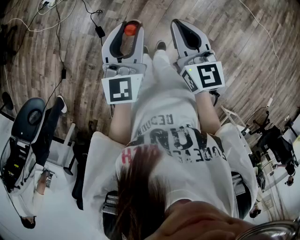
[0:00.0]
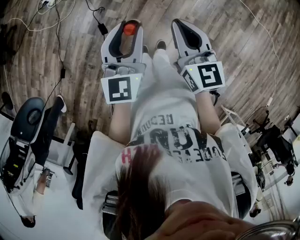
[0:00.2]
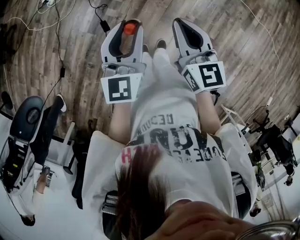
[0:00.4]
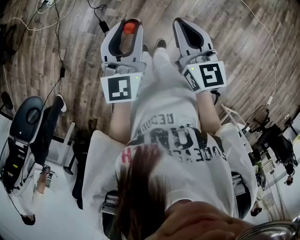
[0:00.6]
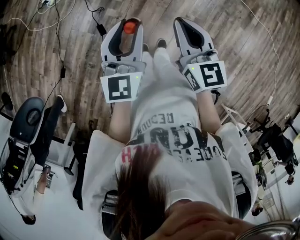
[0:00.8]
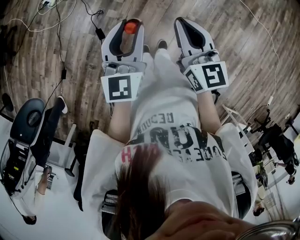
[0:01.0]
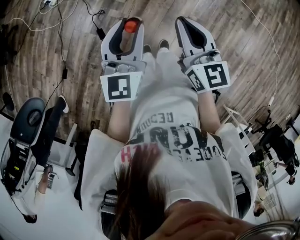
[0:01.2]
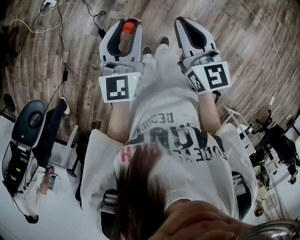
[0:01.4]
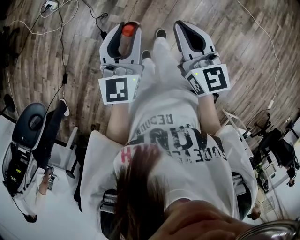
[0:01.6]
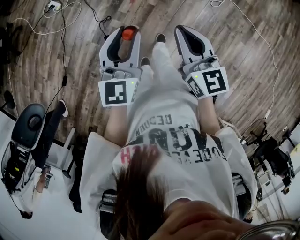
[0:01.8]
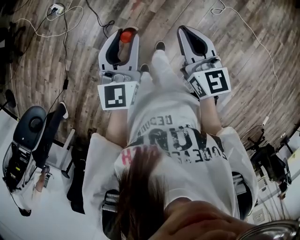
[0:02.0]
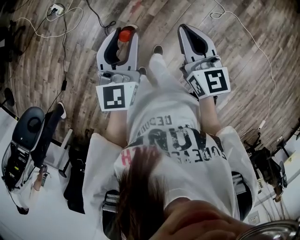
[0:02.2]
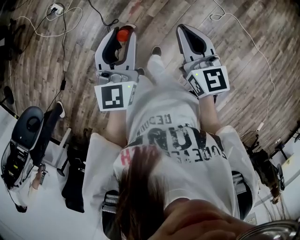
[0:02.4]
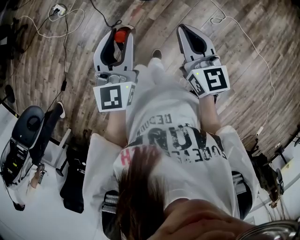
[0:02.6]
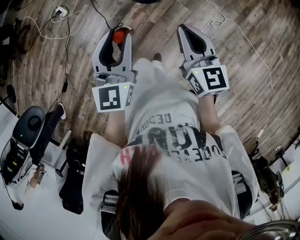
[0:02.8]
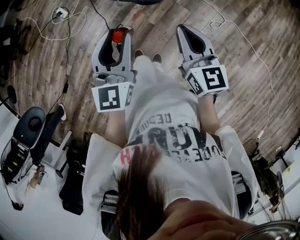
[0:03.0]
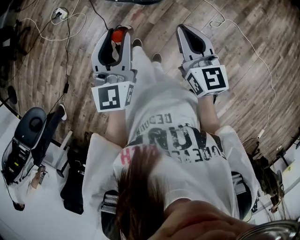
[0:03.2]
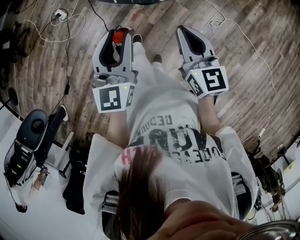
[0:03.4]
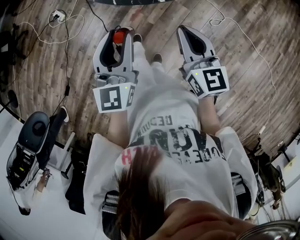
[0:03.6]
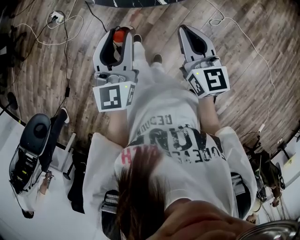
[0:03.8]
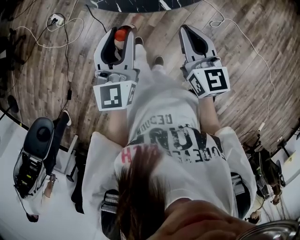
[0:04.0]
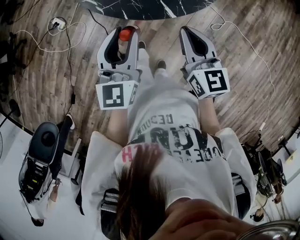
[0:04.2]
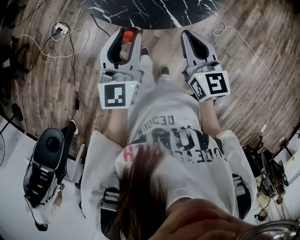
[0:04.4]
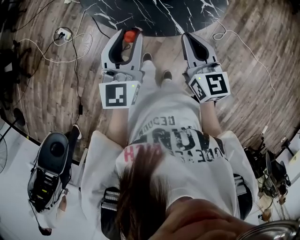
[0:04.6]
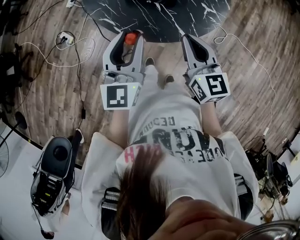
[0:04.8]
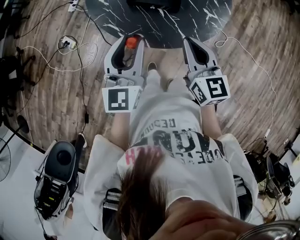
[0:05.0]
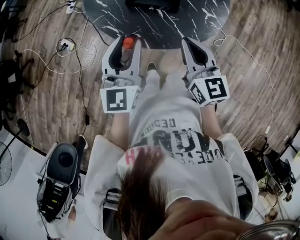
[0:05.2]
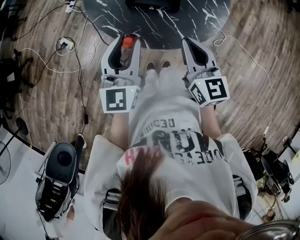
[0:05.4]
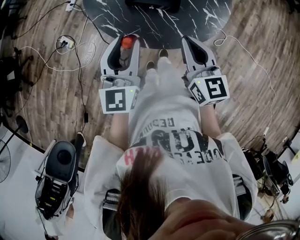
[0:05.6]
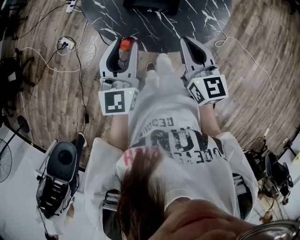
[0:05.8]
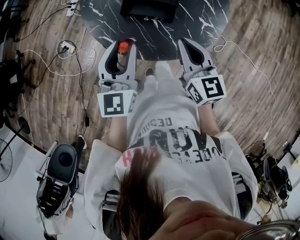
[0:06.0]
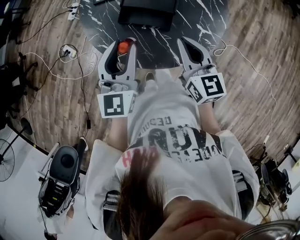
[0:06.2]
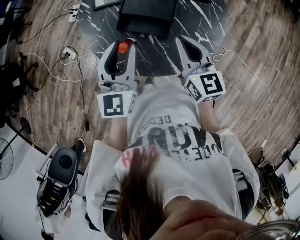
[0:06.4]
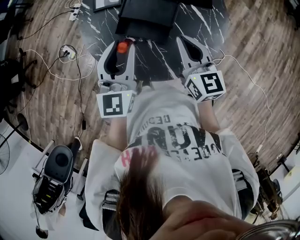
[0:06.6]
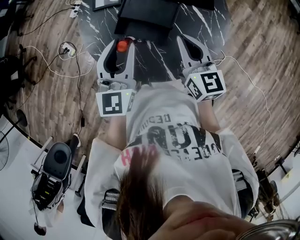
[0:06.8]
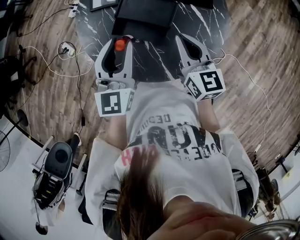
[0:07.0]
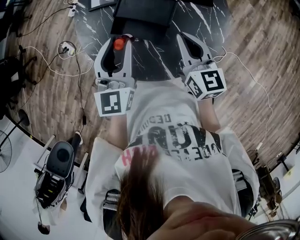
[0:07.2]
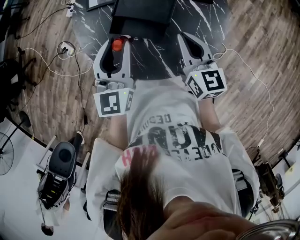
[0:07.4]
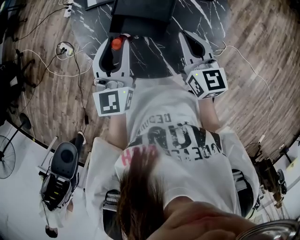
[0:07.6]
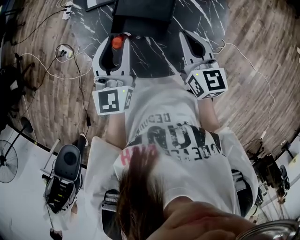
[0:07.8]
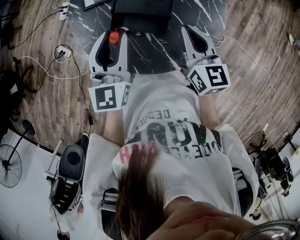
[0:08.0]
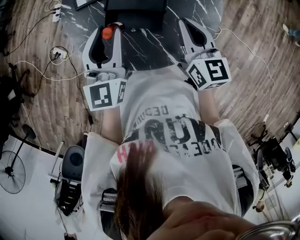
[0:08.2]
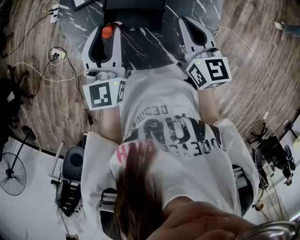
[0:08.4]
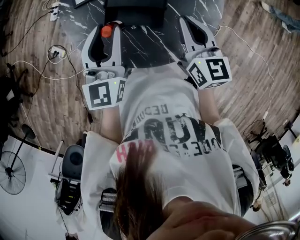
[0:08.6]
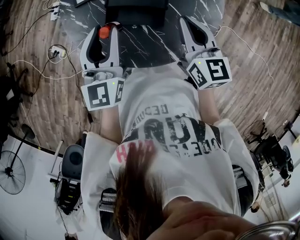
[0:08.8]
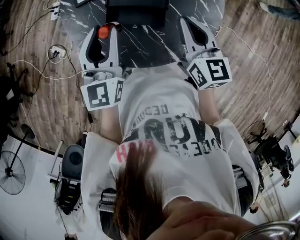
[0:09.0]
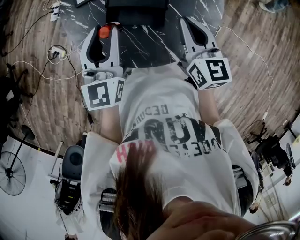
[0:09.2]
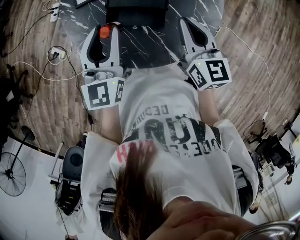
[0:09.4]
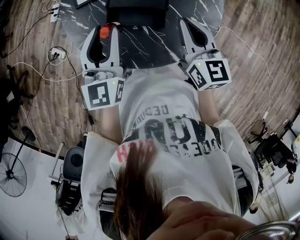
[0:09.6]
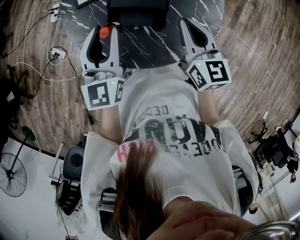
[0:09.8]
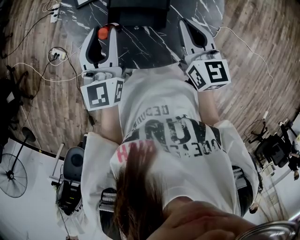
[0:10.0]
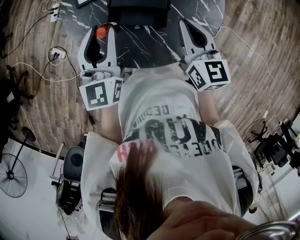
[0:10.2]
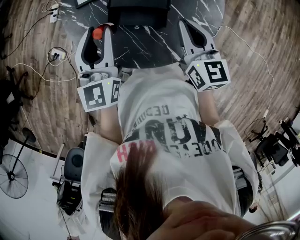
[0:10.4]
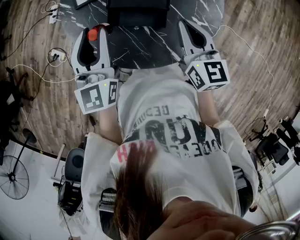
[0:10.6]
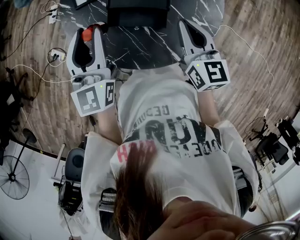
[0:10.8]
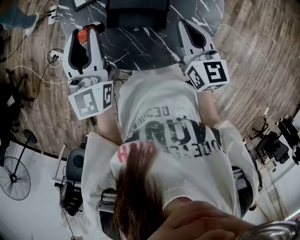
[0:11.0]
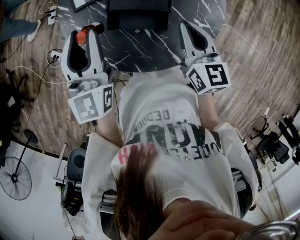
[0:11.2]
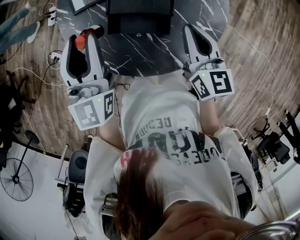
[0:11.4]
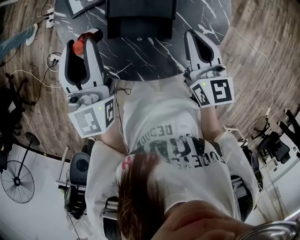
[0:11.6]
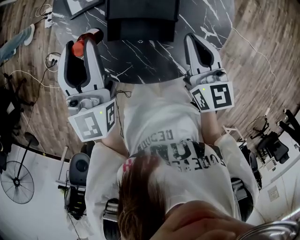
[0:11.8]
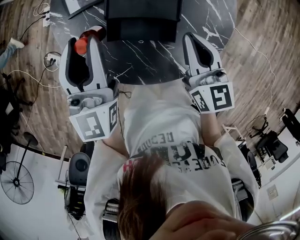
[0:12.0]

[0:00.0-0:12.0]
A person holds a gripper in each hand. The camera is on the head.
0:00.0 to 0:01.6: The grippers stay close to where they were, moving slightly.
0:01.6 to 0:03.0: The grippers both shift forward and to the right by roughly 20 cm.
0:03.0 to 0:04.4: The grippers both shift forward by roughly 15 cm.
0:04.4 to 0:06.0: The grippers both shift forward by roughly 10 cm.
0:06.0 to 0:07.6: The grippers both shift forward and to the right by approximately 15 cm.
0:07.6 to 0:09.0: The grippers move only a little.
0:09.0 to 0:10.4: The grippers move only a little.
0:10.4 to 0:12.0: The left gripper moves forward, roughly 5 cm, while the right gripper ends up approximately 5 cm from where it was.

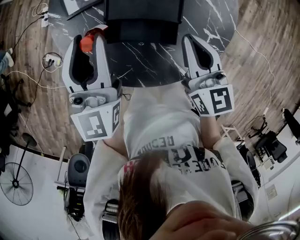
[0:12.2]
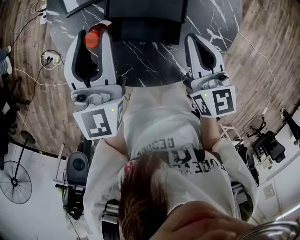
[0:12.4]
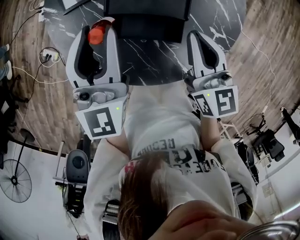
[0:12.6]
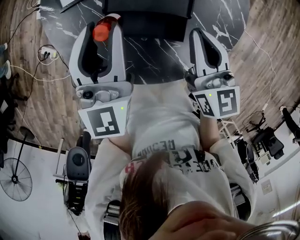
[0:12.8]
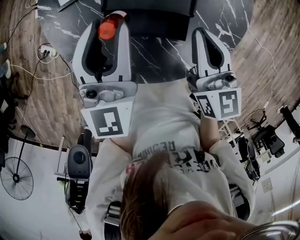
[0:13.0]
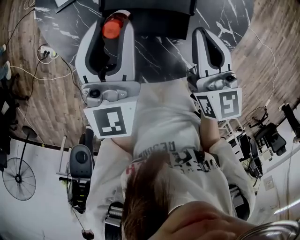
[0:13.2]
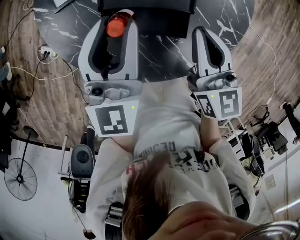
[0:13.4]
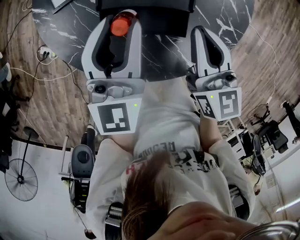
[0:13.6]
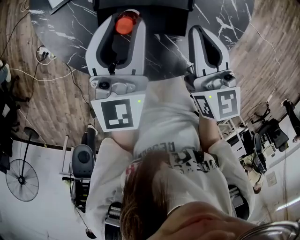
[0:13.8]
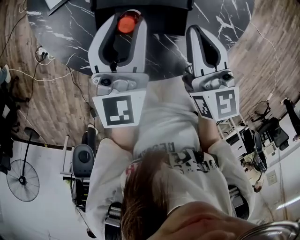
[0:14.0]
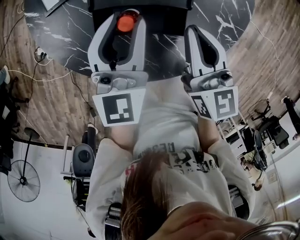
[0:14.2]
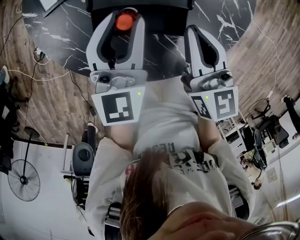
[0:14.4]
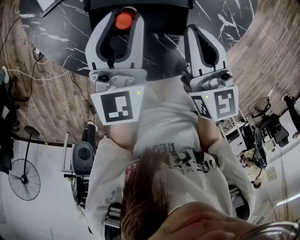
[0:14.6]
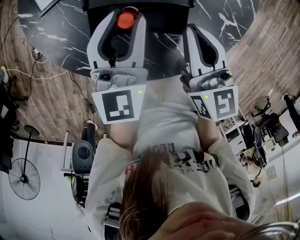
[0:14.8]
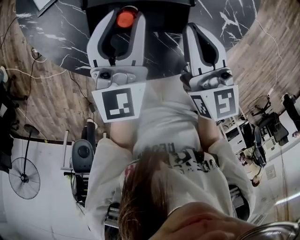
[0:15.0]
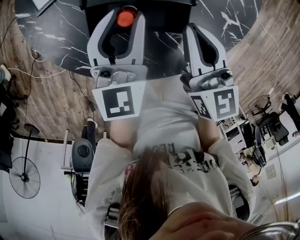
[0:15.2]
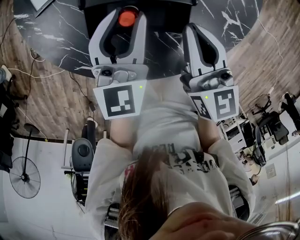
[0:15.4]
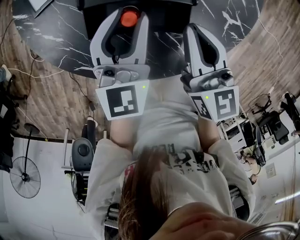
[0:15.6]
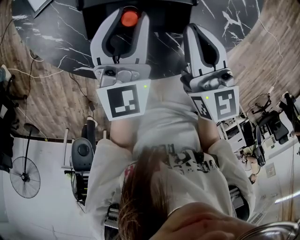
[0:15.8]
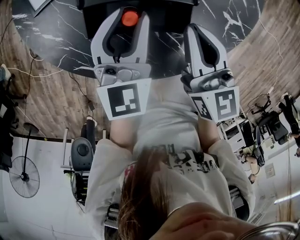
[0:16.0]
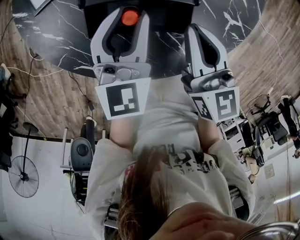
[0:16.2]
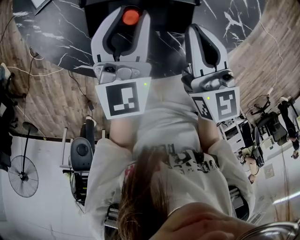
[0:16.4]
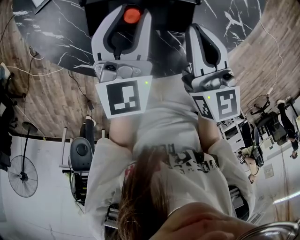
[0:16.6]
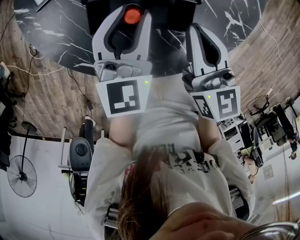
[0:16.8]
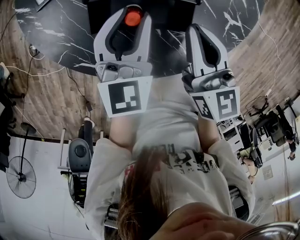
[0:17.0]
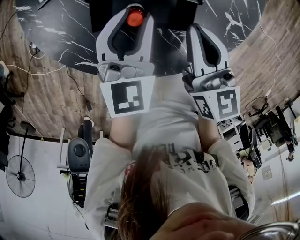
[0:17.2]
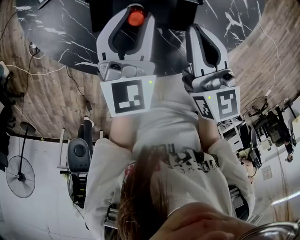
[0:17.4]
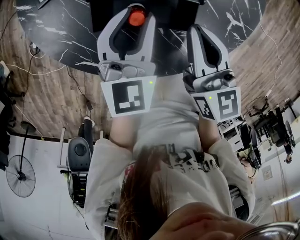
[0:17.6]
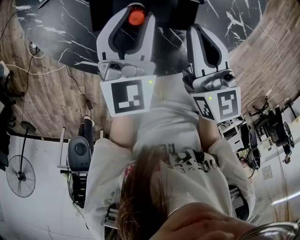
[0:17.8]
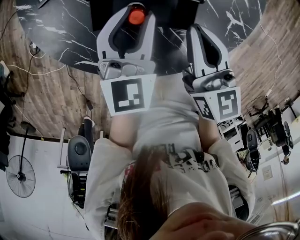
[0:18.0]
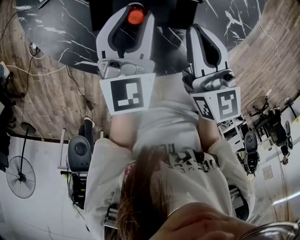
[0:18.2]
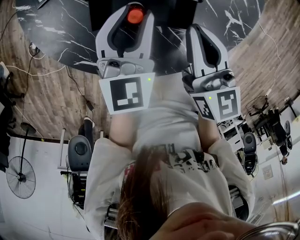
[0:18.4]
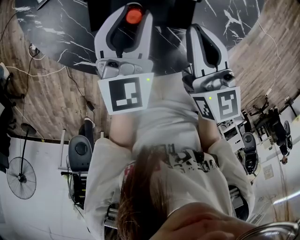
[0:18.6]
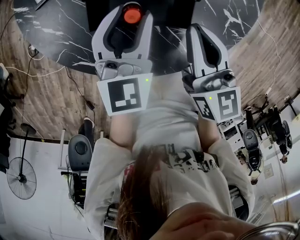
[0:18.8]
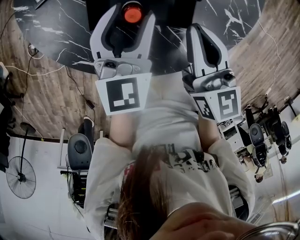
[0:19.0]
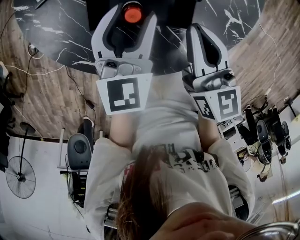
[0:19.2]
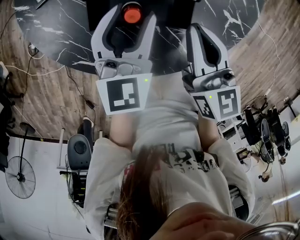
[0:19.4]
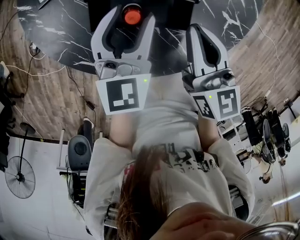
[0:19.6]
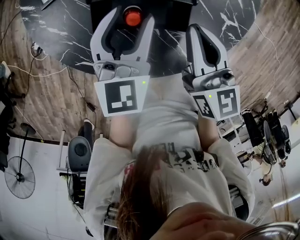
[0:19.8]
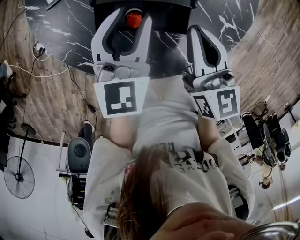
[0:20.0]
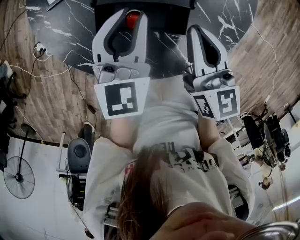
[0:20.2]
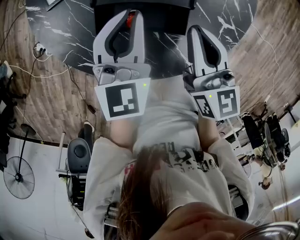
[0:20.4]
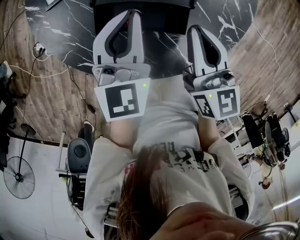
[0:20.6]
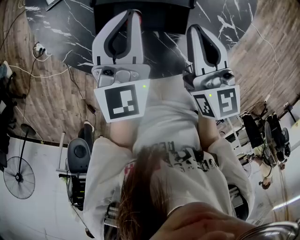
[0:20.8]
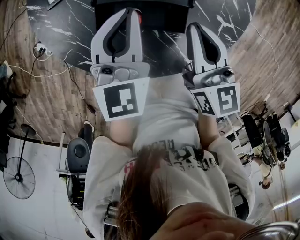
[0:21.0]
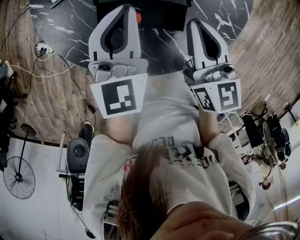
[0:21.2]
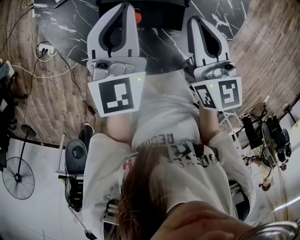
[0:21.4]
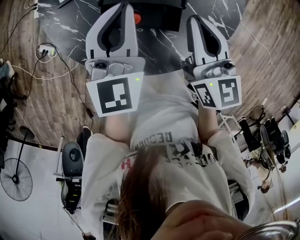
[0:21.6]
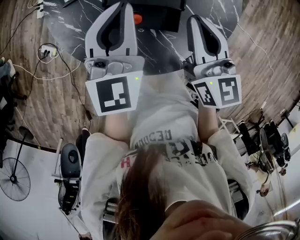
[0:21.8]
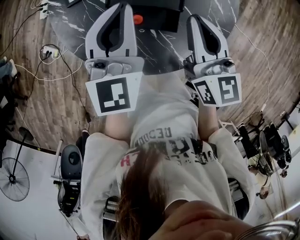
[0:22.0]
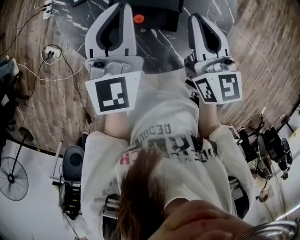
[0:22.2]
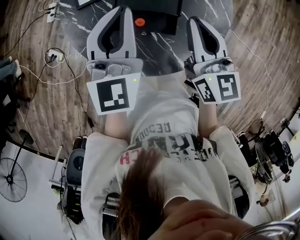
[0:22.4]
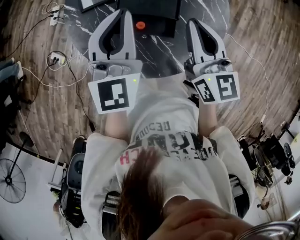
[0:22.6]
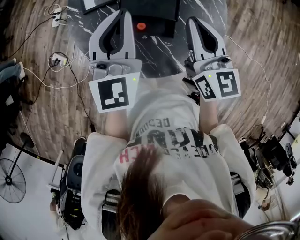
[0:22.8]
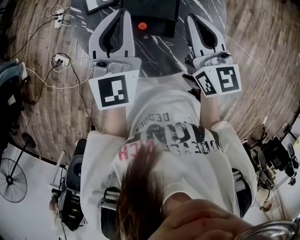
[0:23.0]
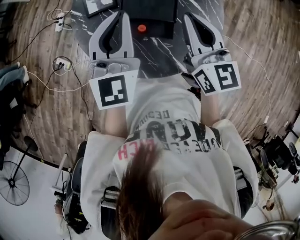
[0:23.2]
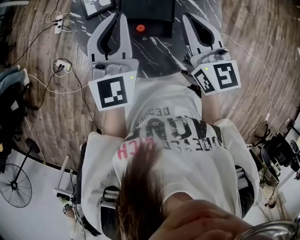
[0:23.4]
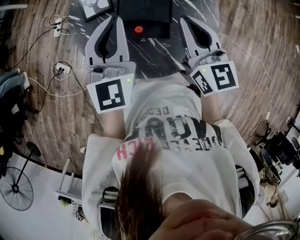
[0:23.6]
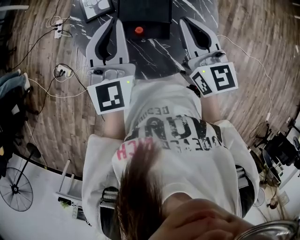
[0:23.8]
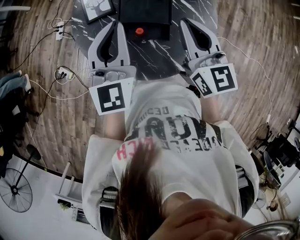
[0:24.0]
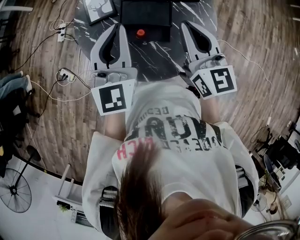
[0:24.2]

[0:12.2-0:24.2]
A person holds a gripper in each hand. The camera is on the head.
0:12.2 to 0:13.8: The left gripper heads downward and to the right, covering some 10 cm.
0:13.8 to 0:15.2: The left gripper moves downward, about 5 cm.
0:15.2 to 0:16.6: The grippers stay close to where they were, moving slightly.
0:16.6 to 0:18.2: The two grippers keep their place.
0:18.2 to 0:19.8: The grippers stay close to where they were, moving slightly.
0:19.8 to 0:21.2: The left gripper shifts roughly 5 cm upward, and closes.
0:21.2 to 0:22.6: Both grippers travel together upward, approximately 15 cm.
0:22.6 to 0:24.2: The grippers both shift upward by roughly 5 cm.
